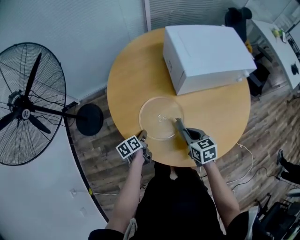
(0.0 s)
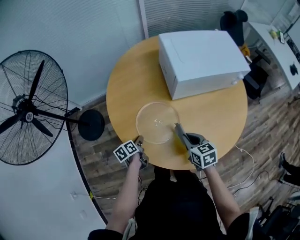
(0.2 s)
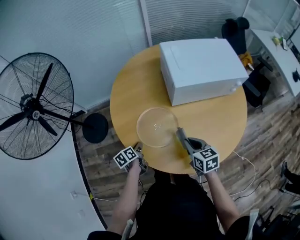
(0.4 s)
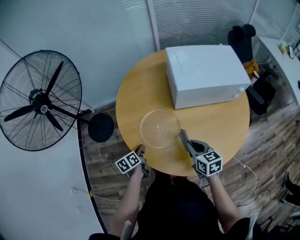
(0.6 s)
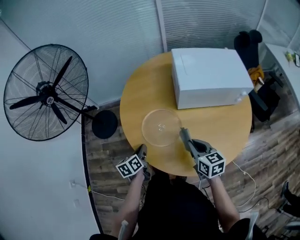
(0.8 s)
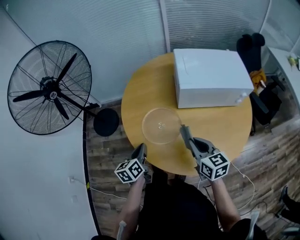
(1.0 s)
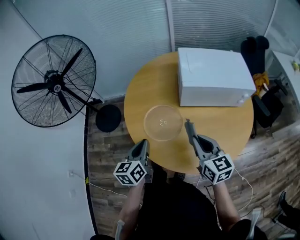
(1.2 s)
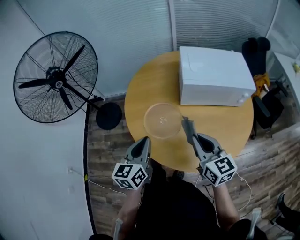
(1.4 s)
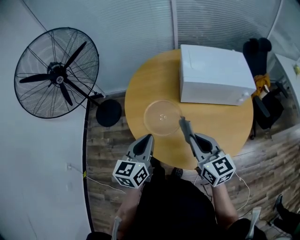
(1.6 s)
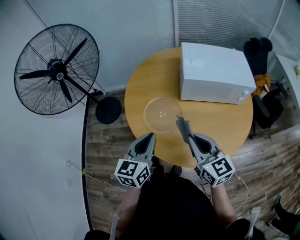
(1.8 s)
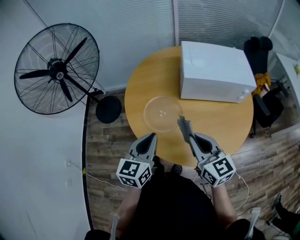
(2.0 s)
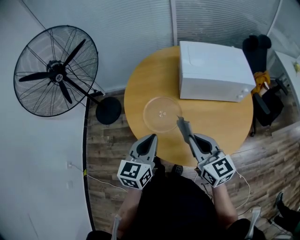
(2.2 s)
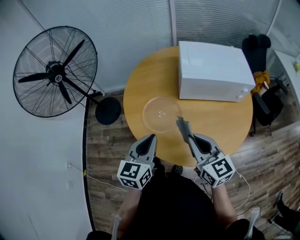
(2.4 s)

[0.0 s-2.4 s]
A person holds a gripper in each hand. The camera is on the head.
0.0 to 1.2 s: The left gripper heads upward and backward, covering some 30 cm, and turns by roughly 40 degrees, while the right gripper shifts about 20 cm upward, and swivels some 30 degrees.
1.2 to 2.4 s: The right gripper shifts by some 5 cm. Meanwhile the left gripper shifts approximately 10 cm upward and to the right.

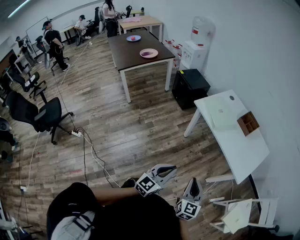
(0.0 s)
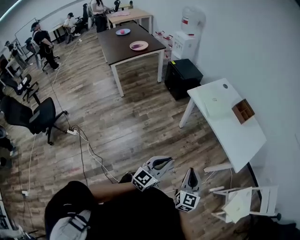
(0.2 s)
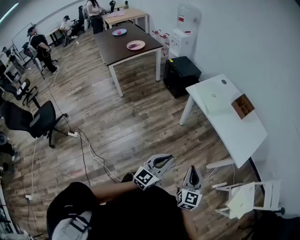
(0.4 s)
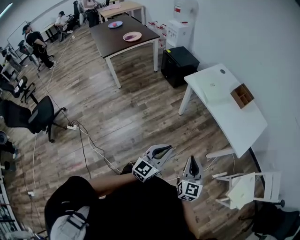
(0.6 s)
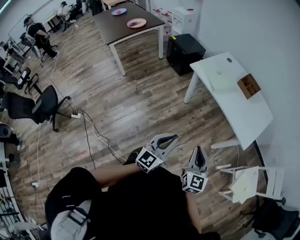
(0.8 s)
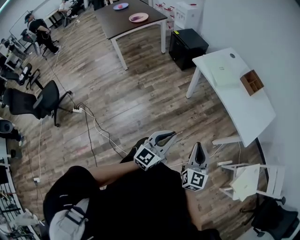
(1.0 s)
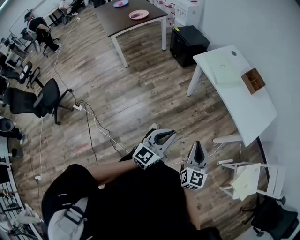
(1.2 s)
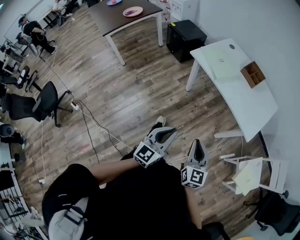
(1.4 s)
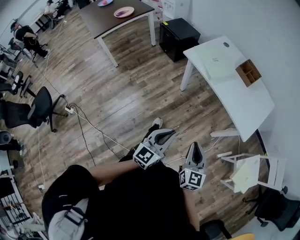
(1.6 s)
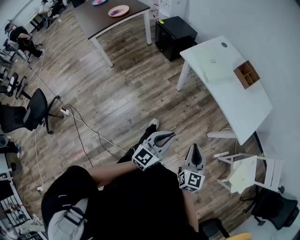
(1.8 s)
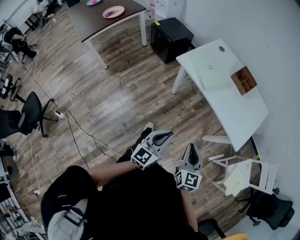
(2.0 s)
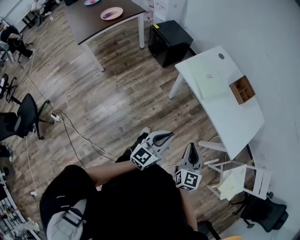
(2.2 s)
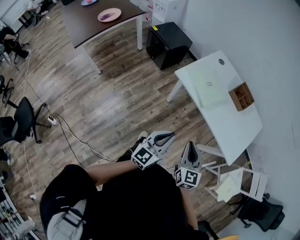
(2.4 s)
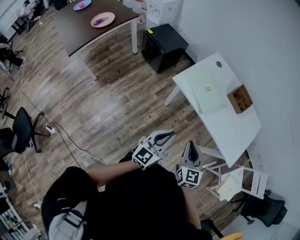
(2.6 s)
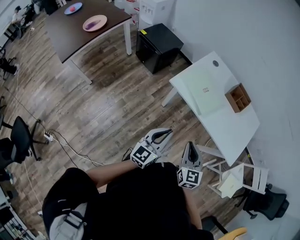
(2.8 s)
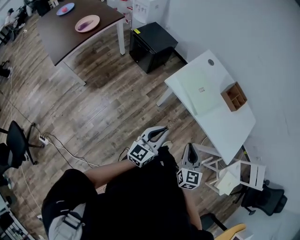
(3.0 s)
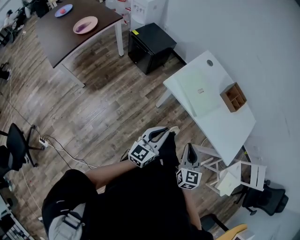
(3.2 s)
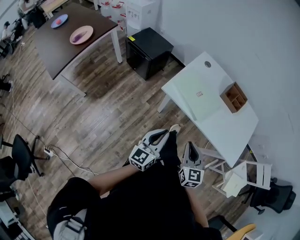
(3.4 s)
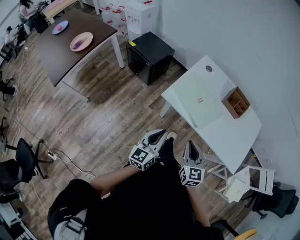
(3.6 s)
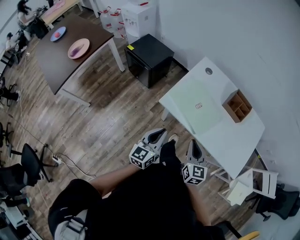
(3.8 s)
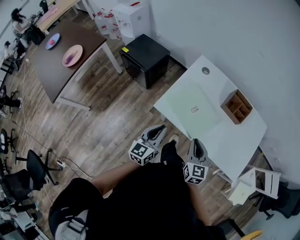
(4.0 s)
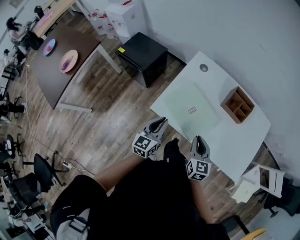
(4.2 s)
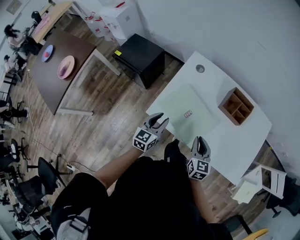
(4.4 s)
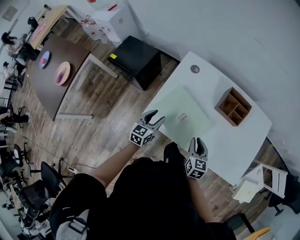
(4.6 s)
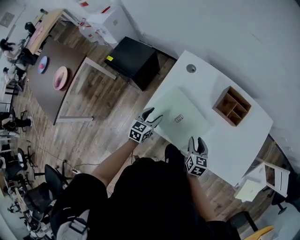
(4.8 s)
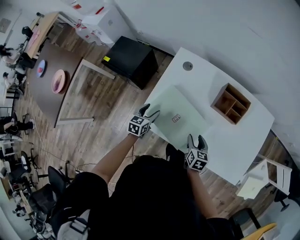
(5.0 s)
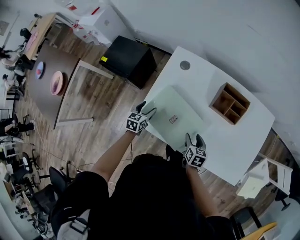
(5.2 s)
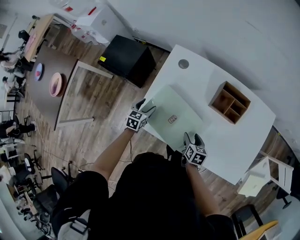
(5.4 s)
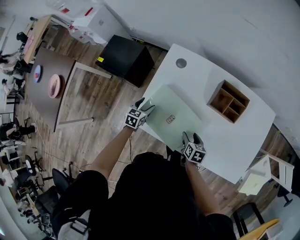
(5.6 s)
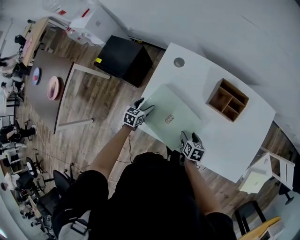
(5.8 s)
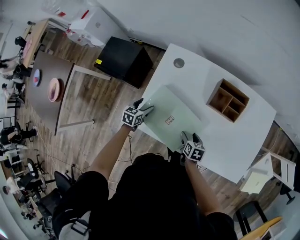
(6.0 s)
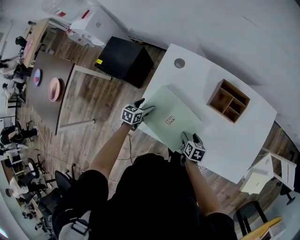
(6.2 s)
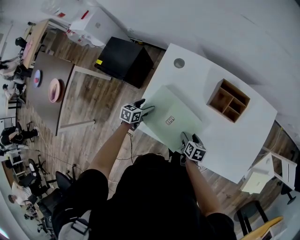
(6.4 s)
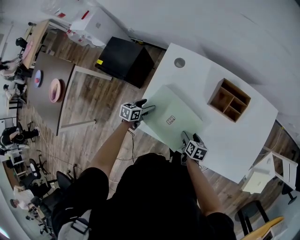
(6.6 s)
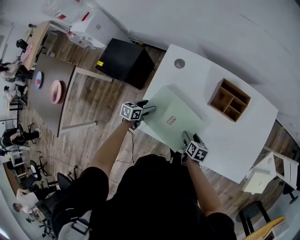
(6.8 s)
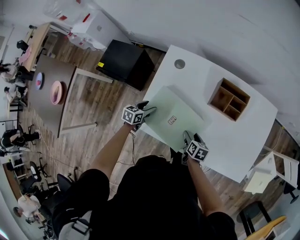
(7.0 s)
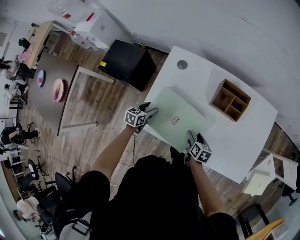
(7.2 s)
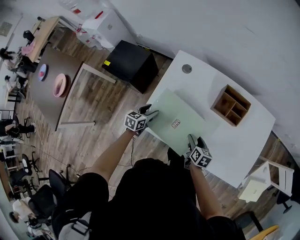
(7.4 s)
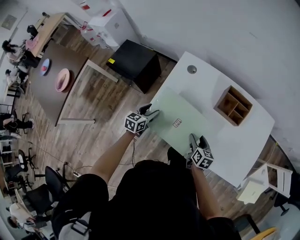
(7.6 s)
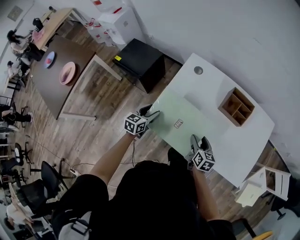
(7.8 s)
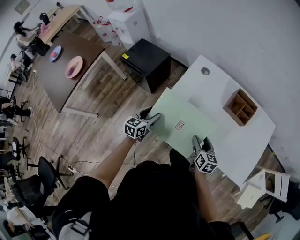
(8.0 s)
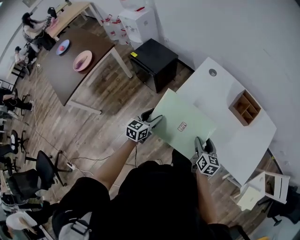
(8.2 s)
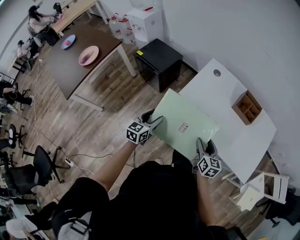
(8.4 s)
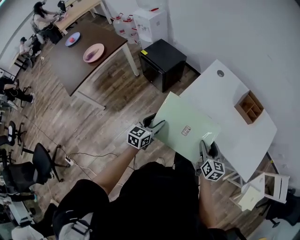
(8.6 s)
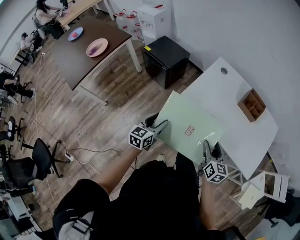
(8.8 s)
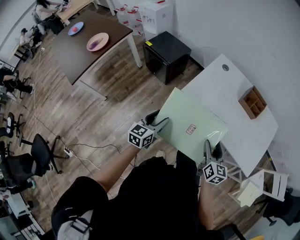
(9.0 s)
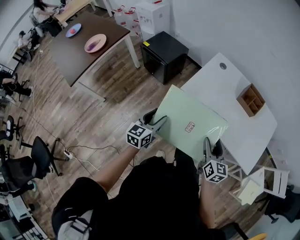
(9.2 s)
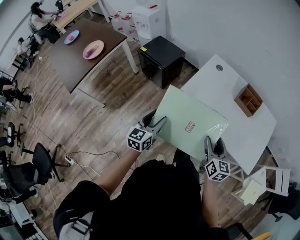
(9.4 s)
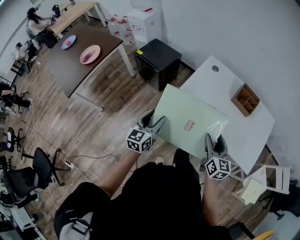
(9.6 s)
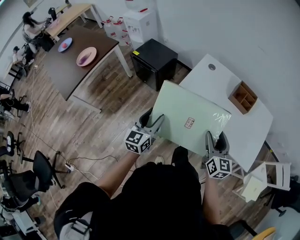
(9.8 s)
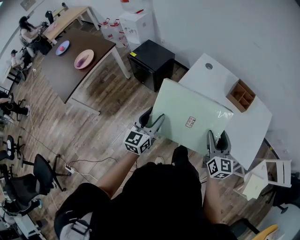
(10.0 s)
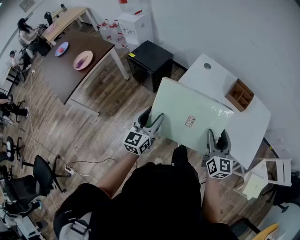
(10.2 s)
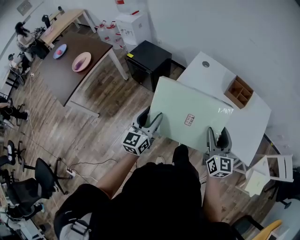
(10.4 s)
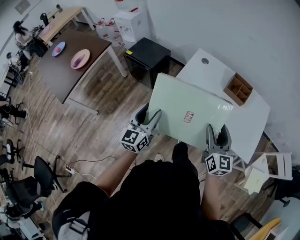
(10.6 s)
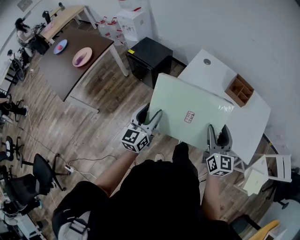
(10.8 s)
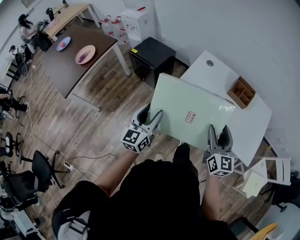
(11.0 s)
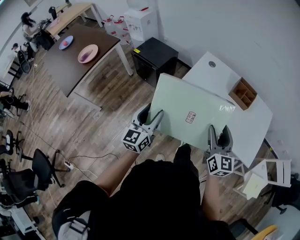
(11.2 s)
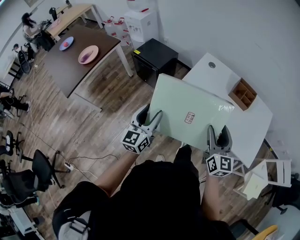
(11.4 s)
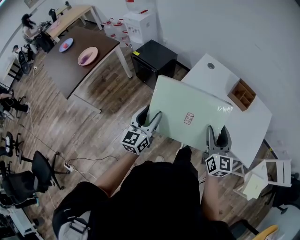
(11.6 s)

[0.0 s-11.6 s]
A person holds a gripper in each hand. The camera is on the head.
0.0 to 1.4 s: There are only small adjustments of the grippers.
1.4 to 2.8 s: Both grippers travel together forward and to the left, some 35 cm.
2.8 to 4.4 s: The grippers both shift forward by approximately 35 cm. The right gripper changes its angle by approximately 20 degrees. The left gripper swivels approximately 20 degrees.
4.4 to 5.8 s: The left gripper heads downward and forward, covering approximately 20 cm, turns by some 30 degrees, and opens its fingers; the right gripper shifts approximately 20 cm downward, changes its angle by approximately 40 degrees, and opens.
5.8 to 7.2 s: There are only small adjustments of the grippers.
7.2 to 8.8 s: The left gripper heads backward and upward, covering roughly 40 cm, and swivels approximately 30 degrees, while the right gripper heads backward, upward and to the left, covering about 35 cm, and changes its angle by approximately 40 degrees.
8.8 to 10.2 s: The grippers both shift upward by approximately 10 cm.
10.2 to 11.6 s: The grippers make only small movements.

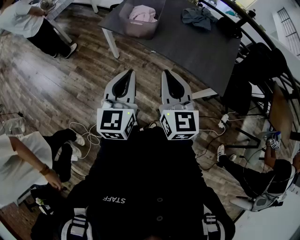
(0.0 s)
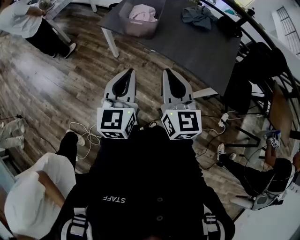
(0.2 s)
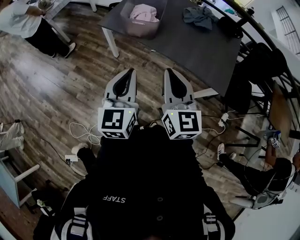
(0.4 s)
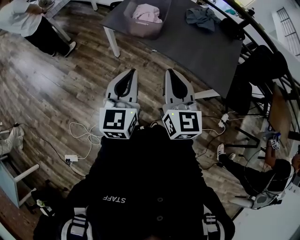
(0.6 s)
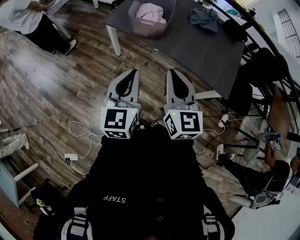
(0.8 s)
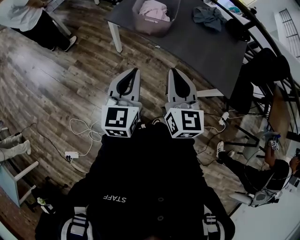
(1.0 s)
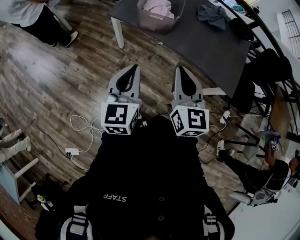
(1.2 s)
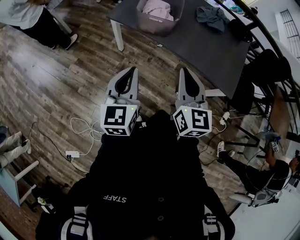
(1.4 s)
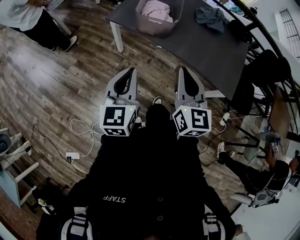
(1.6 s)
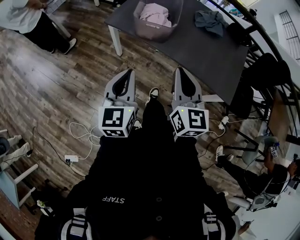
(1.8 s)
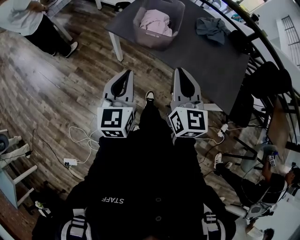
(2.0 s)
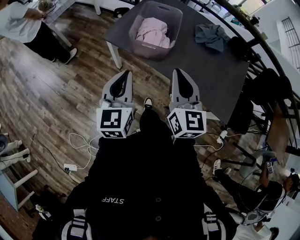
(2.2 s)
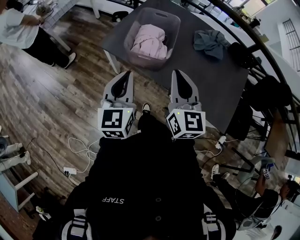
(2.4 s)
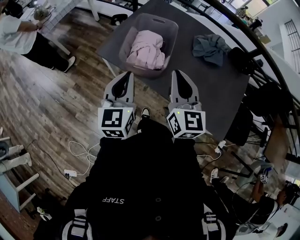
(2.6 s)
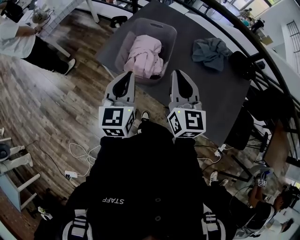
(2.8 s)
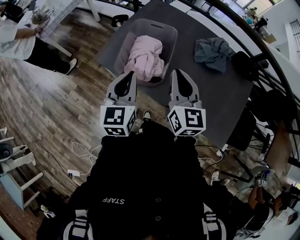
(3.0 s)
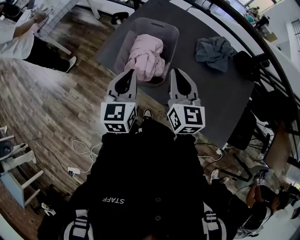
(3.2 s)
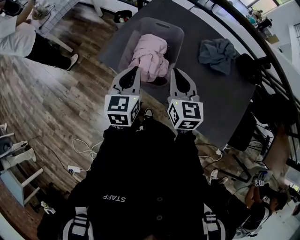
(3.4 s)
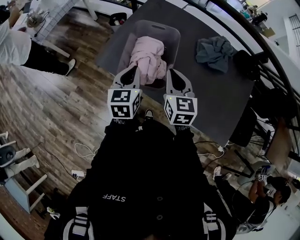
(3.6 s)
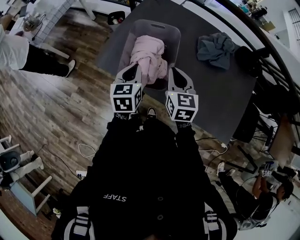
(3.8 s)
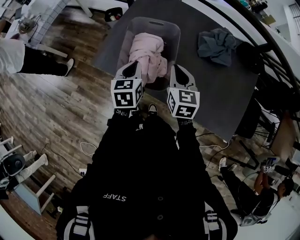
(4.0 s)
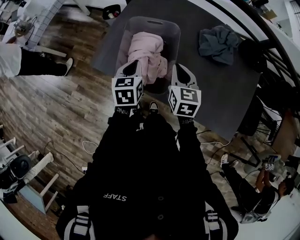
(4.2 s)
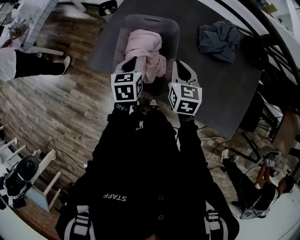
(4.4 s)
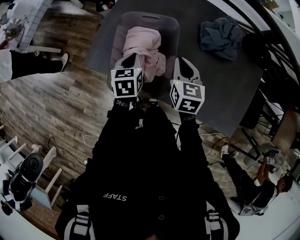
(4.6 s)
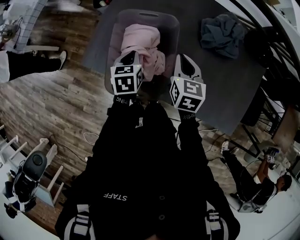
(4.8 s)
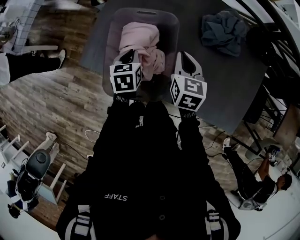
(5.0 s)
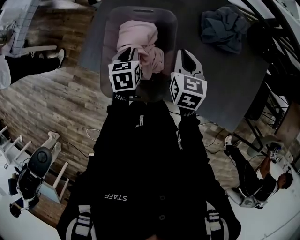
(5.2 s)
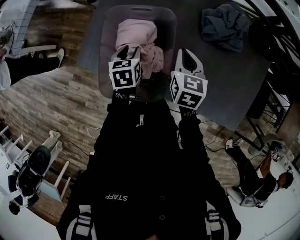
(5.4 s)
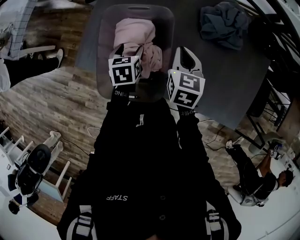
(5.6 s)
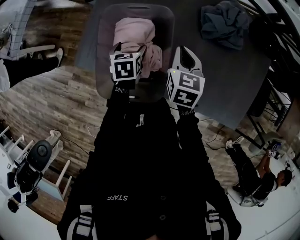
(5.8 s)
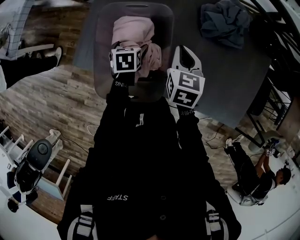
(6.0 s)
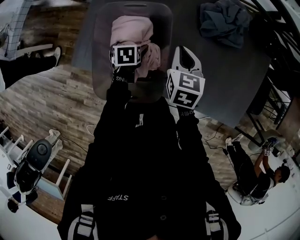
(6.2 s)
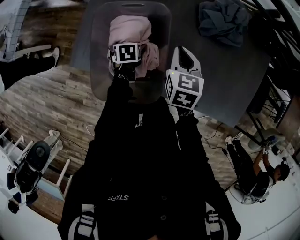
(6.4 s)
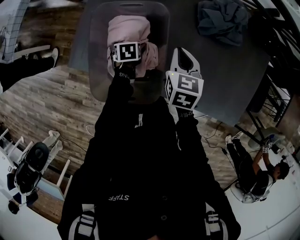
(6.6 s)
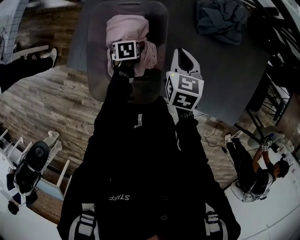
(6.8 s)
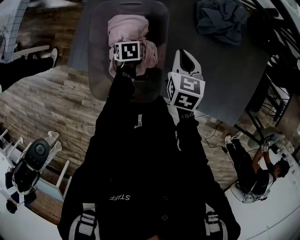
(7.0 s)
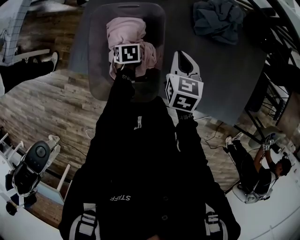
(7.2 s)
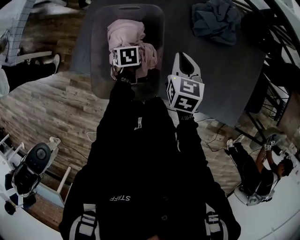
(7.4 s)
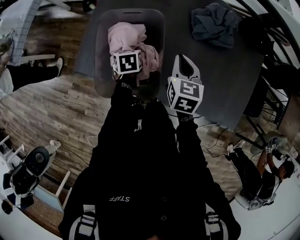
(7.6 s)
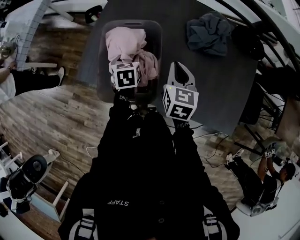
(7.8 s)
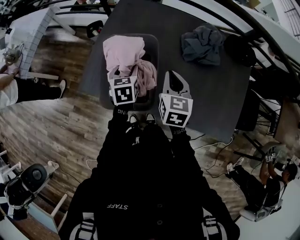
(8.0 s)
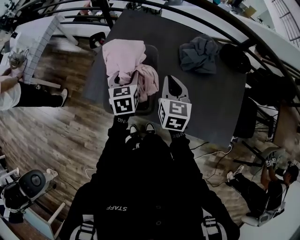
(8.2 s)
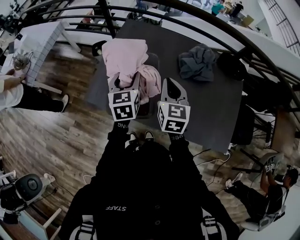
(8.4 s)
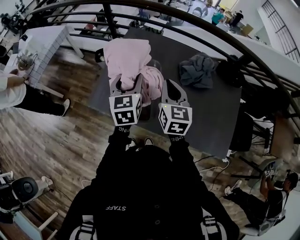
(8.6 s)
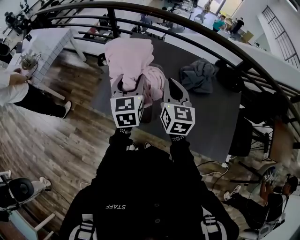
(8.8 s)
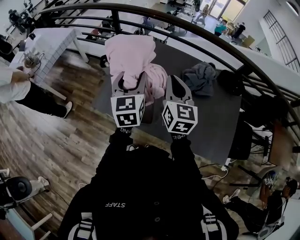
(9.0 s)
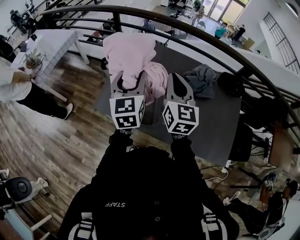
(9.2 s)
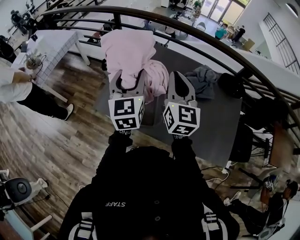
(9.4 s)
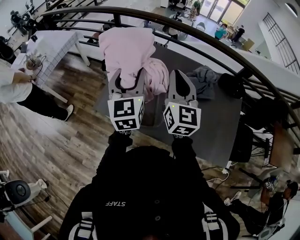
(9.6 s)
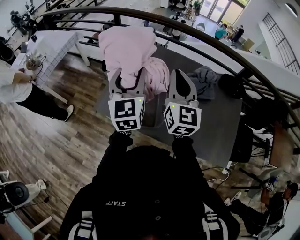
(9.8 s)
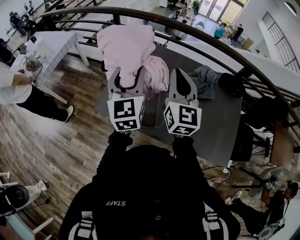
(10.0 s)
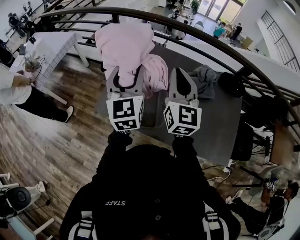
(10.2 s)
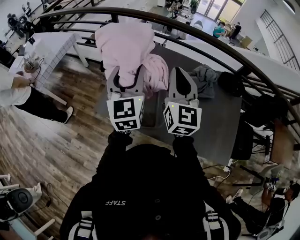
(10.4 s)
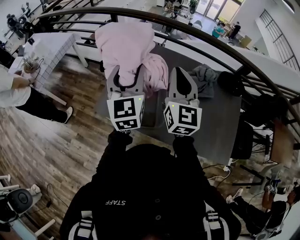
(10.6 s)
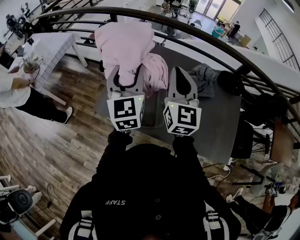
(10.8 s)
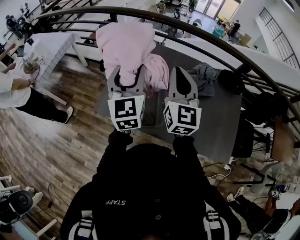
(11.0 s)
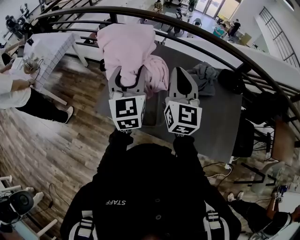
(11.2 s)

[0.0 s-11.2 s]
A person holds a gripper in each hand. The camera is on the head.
0.0 to 1.6 s: The right gripper goes approximately 10 cm forward and to the left, while the left gripper is displaced to the left, forward and downward by approximately 15 cm.
1.6 to 3.2 s: The grippers both shift forward by some 35 cm.
3.2 to 4.8 s: The two grippers go approximately 25 cm downward and forward. The left gripper tilts its fingers about 30 degrees downward, while the right gripper rotates roughly 30 degrees.
4.8 to 6.4 s: The left gripper moves downward, about 15 cm, rotates roughly 20 degrees, and opens its fingers. The right gripper goes about 5 cm downward.
6.4 to 8.0 s: The left gripper is displaced upward by approximately 20 cm, changes its angle by roughly 30 degrees, and closes its fingers. The right gripper moves upward and backward, roughly 10 cm.
8.0 to 9.6 s: Both grippers travel together upward, roughly 25 cm. The right gripper angles its fingers upward, by about 30 degrees, while the left gripper tilts its fingers approximately 40 degrees upward.
9.6 to 11.2 s: The grippers stay close to where they were, moving slightly.
